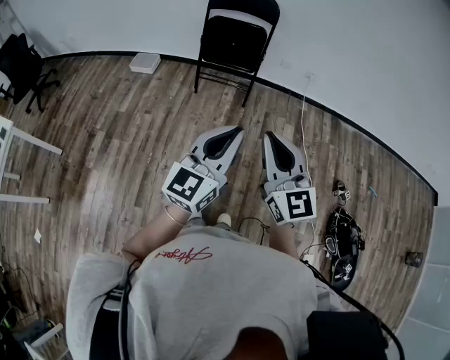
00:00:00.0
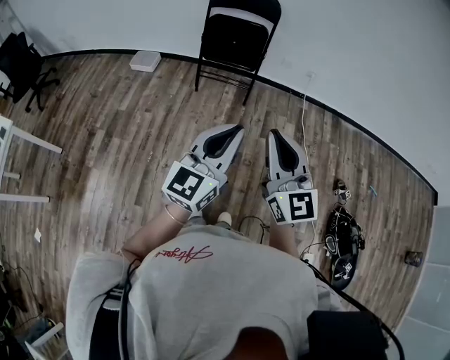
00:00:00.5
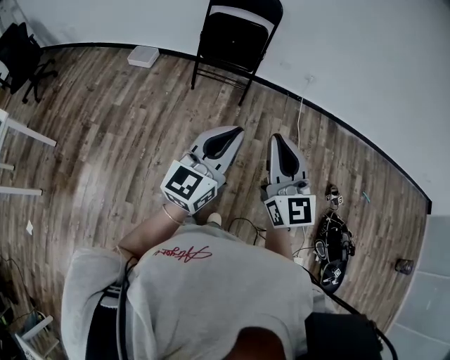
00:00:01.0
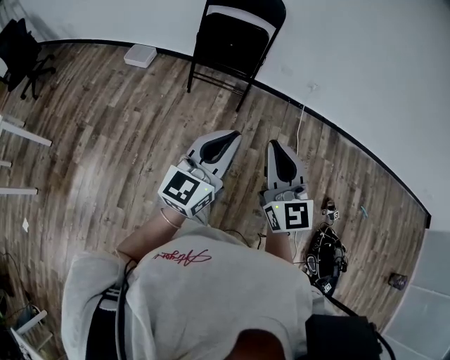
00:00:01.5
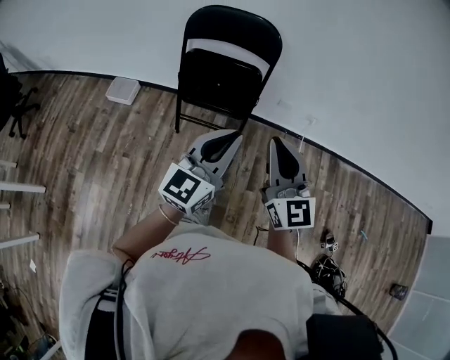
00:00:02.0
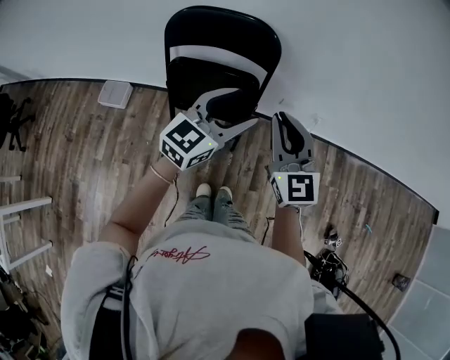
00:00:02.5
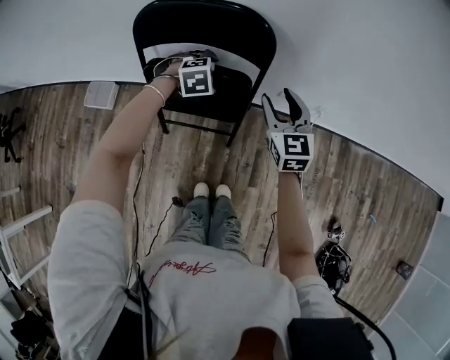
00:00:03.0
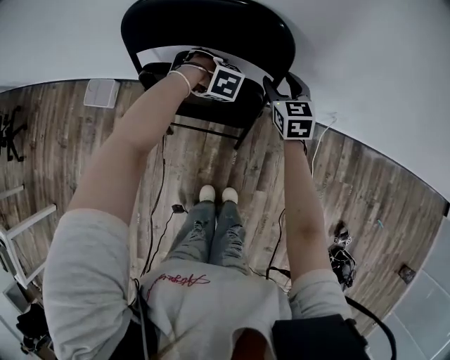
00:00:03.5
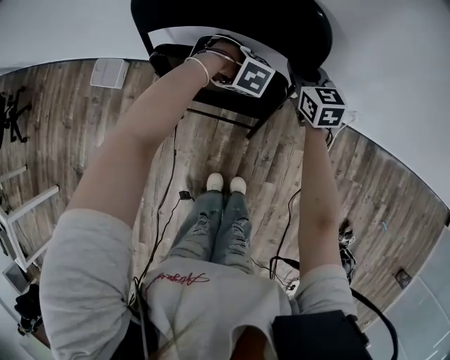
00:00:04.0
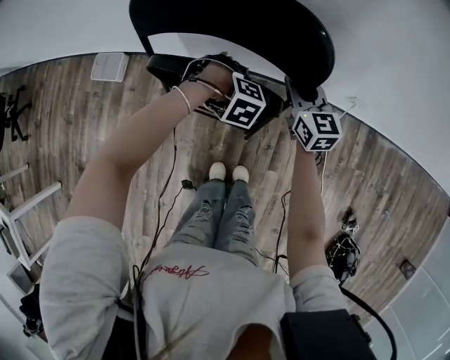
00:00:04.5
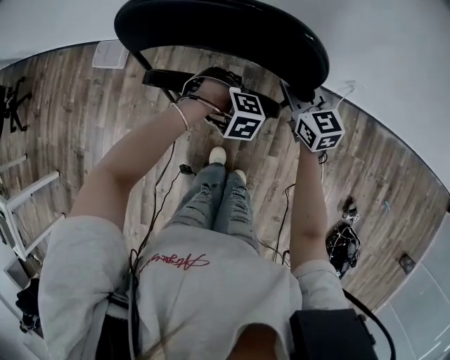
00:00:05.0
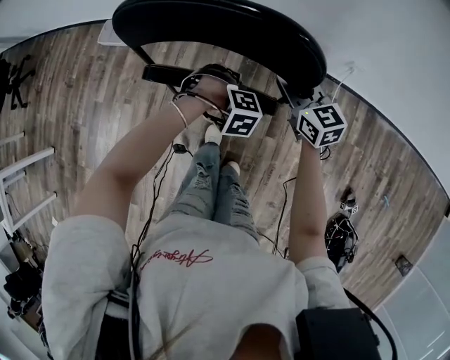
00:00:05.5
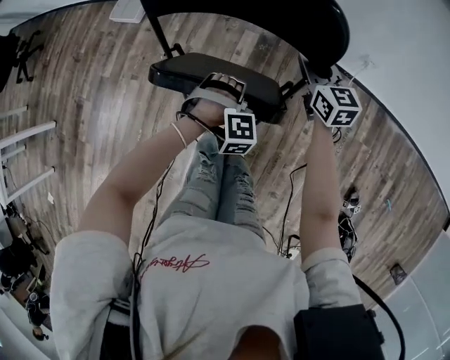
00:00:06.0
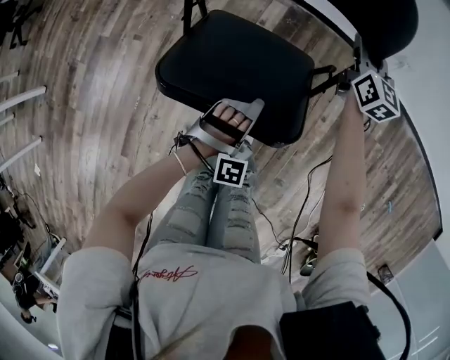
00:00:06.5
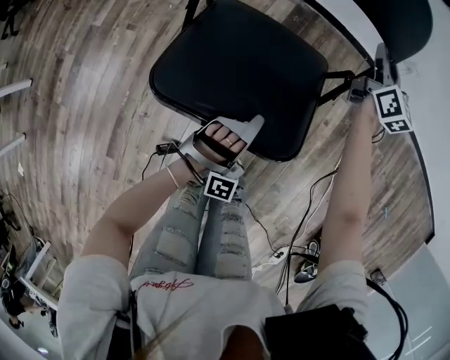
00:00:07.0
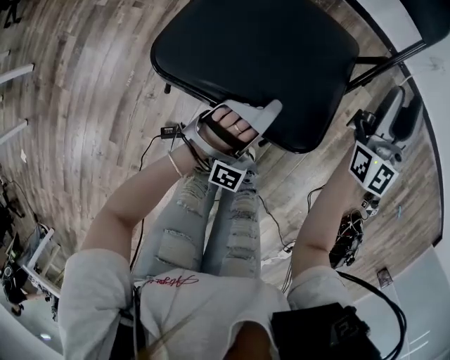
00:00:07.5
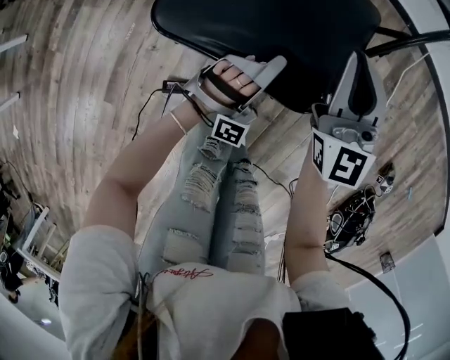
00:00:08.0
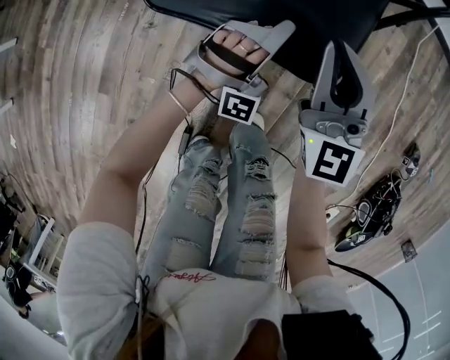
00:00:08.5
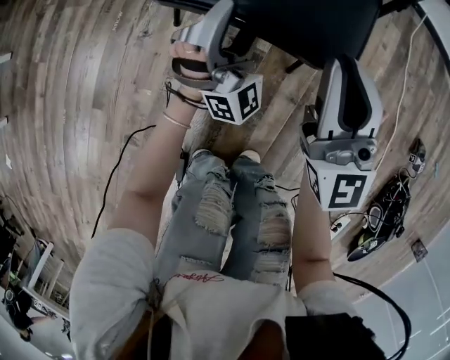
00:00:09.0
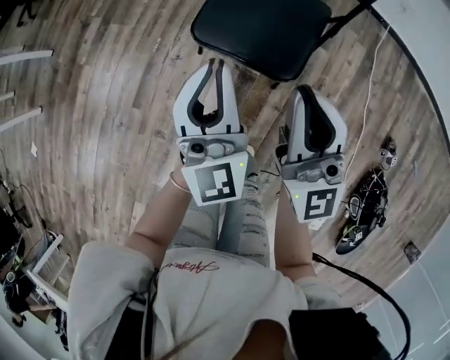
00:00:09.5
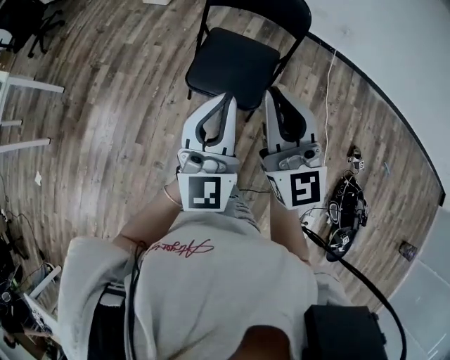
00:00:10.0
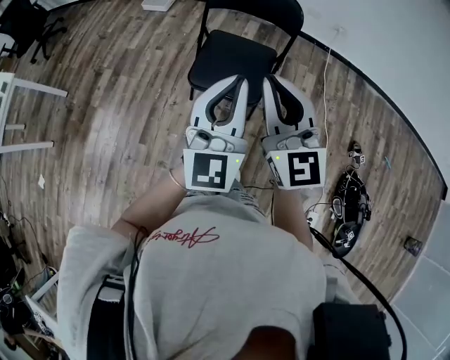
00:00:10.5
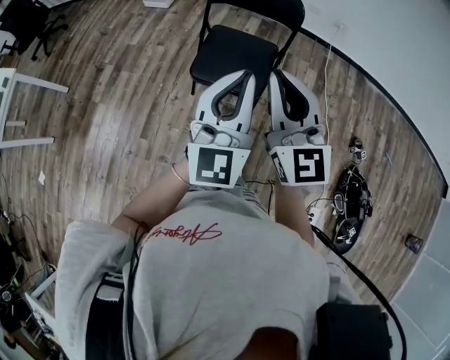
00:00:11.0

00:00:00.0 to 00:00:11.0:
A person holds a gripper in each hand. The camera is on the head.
00:00:00.0 to 00:00:02.0: The pair of grippers is taken forward, approximately 40 cm.
00:00:02.0 to 00:00:03.5: Both grippers are carried roughly 50 cm. The left gripper tilts its fingers approximately 100 degrees downward, and opens its fingers; the right gripper points its fingers roughly 30 degrees further downward, and opens its fingers.
00:00:03.5 to 00:00:05.5: The right gripper ends up about 30 cm from where it was, rotates about 20 degrees, and closes its fingers. Meanwhile the left gripper ends up roughly 30 cm from where it was, and closes up.
00:00:05.5 to 00:00:07.5: The right gripper shifts by roughly 20 cm, tips its fingers upward by about 40 degrees, and opens up, while the left gripper ends up roughly 30 cm from where it was, and points its fingers about 60 degrees further upward.
00:00:07.5 to 00:00:09.0: The left gripper moves backward, to the left and downward, about 20 cm, turns by approximately 40 degrees, and opens up; the right gripper shifts roughly 40 cm backward and to the left, and closes.
00:00:09.0 to 00:00:11.0: Both grippers move upward, approximately 50 cm. The left gripper rolls counterclockwise, seen from behind, by roughly 60 degrees, and closes its fingers.

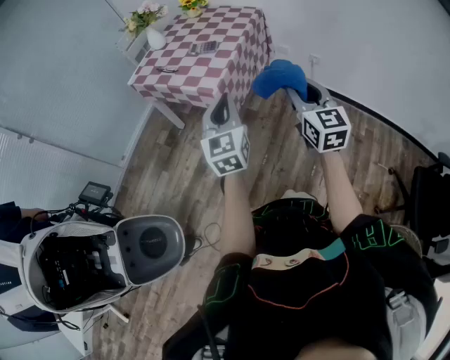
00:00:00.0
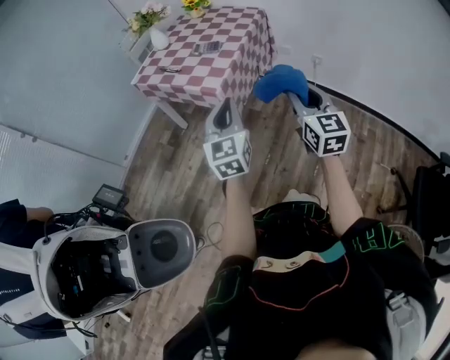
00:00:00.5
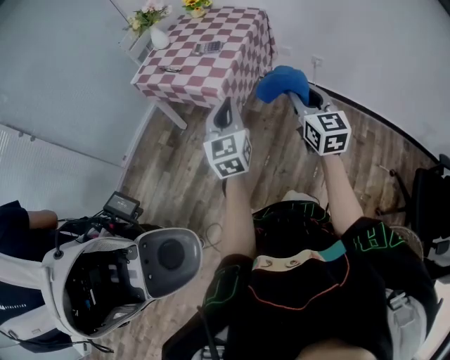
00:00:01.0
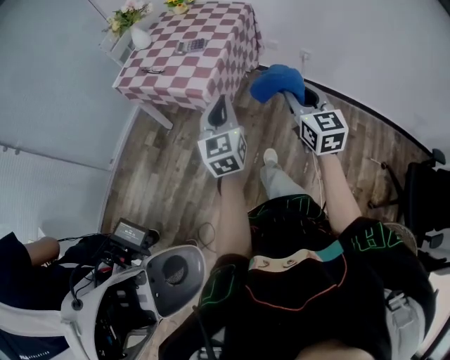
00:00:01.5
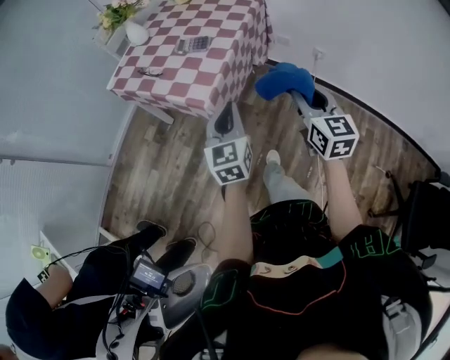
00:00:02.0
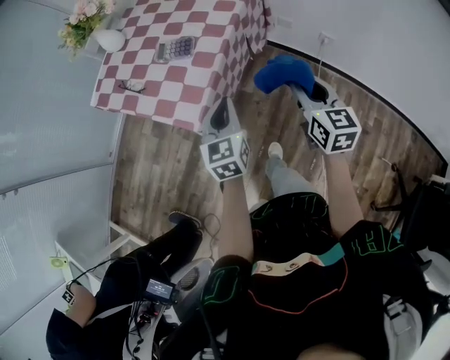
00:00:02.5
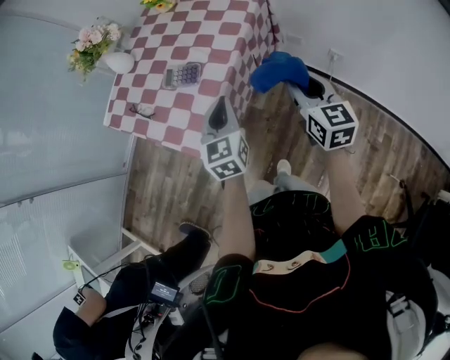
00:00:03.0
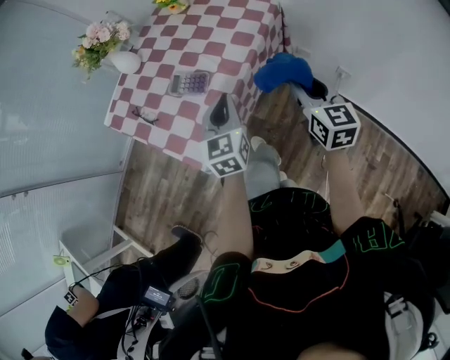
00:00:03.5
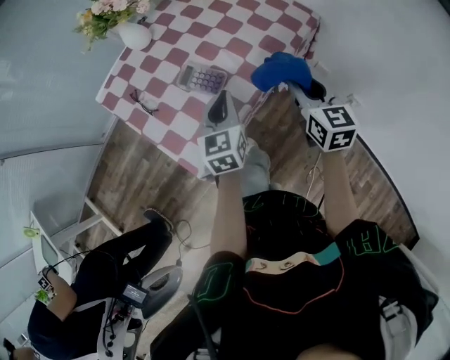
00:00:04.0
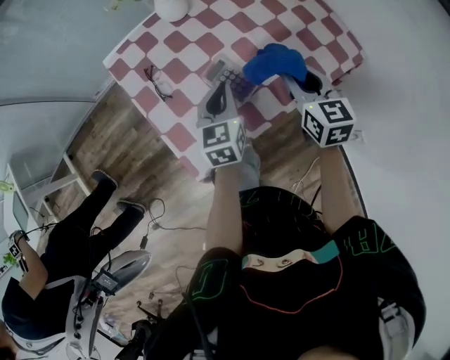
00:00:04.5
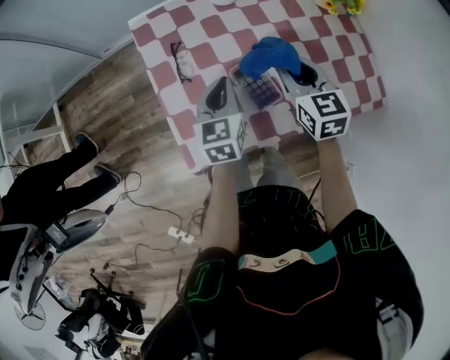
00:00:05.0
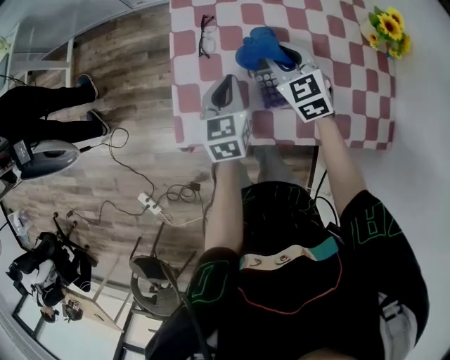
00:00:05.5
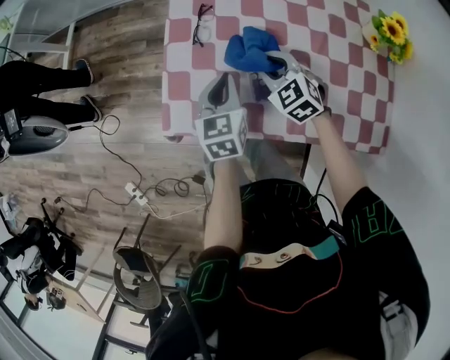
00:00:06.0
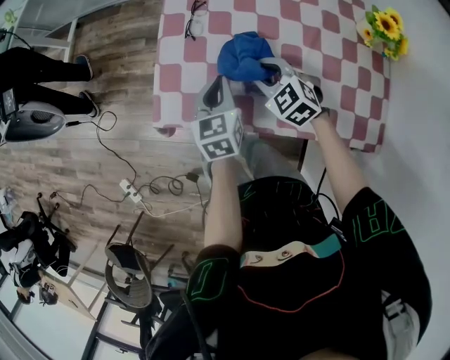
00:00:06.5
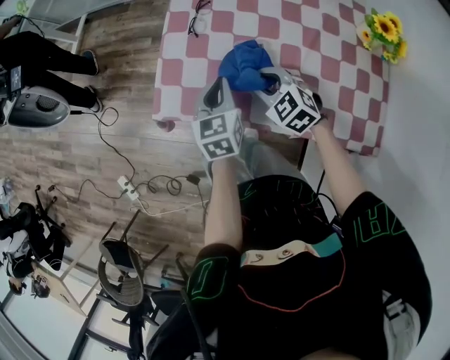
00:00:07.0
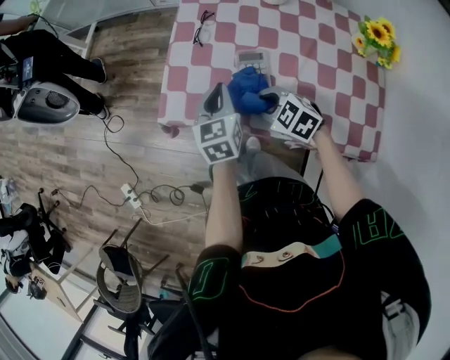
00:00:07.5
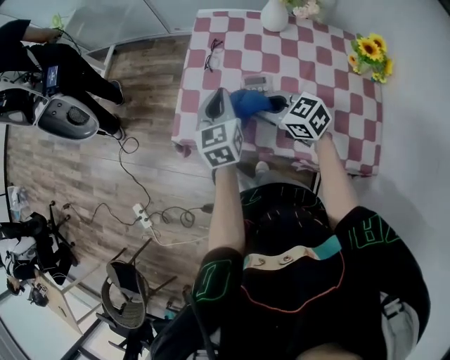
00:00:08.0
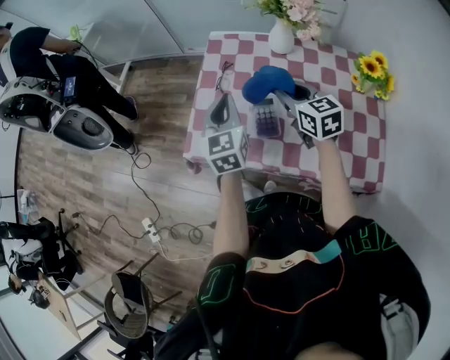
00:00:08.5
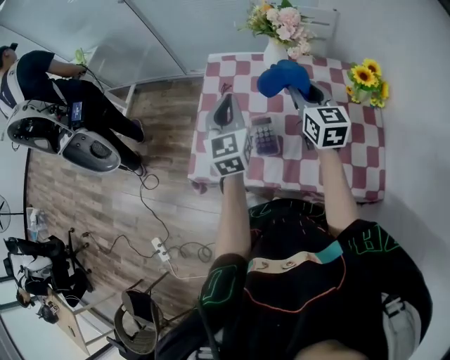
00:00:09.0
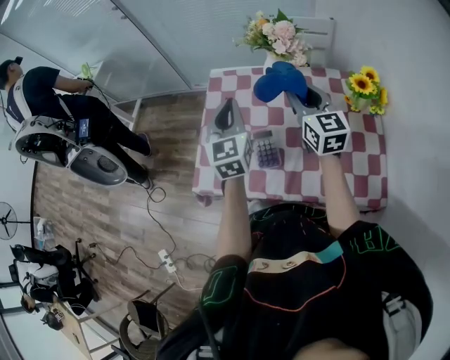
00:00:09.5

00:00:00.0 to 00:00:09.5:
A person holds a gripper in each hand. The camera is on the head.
00:00:00.0 to 00:00:02.0: The two grippers go approximately 15 cm forward and downward.
00:00:02.0 to 00:00:04.0: Both grippers travel together forward, approximately 35 cm.
00:00:04.0 to 00:00:05.5: The left gripper changes place by some 20 cm, and changes its angle by roughly 50 degrees, while the right gripper ends up about 35 cm from where it was, and turns by about 70 degrees.
00:00:05.5 to 00:00:07.5: The left gripper ends up roughly 10 cm from where it was. Meanwhile the right gripper shifts by about 20 cm, and rotates roughly 40 degrees.
00:00:07.5 to 00:00:09.5: The grippers both shift upward by about 20 cm. The right gripper angles its fingers upward, by roughly 50 degrees. The left gripper changes its angle by approximately 30 degrees.

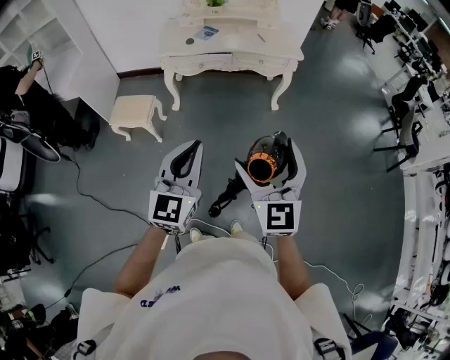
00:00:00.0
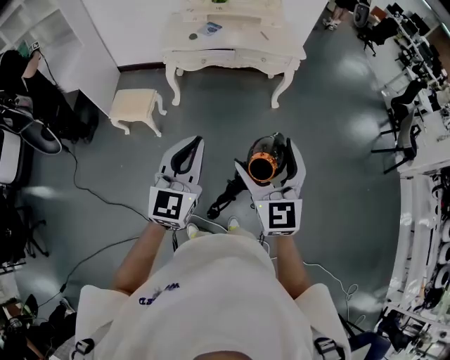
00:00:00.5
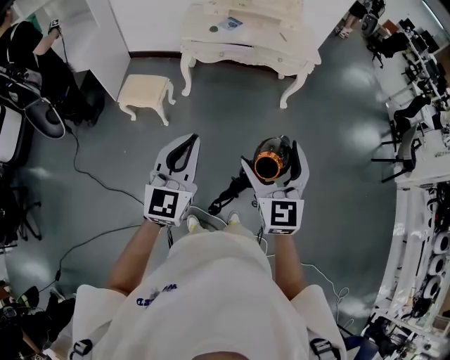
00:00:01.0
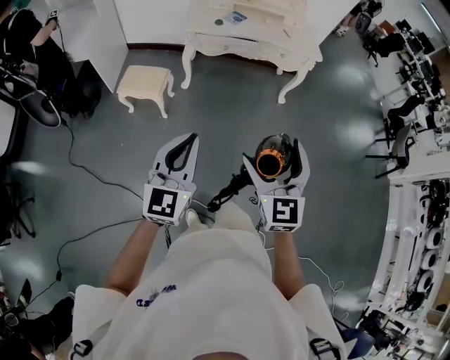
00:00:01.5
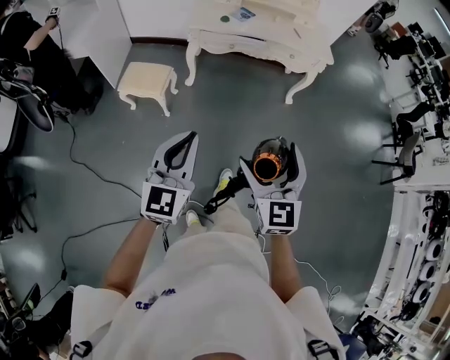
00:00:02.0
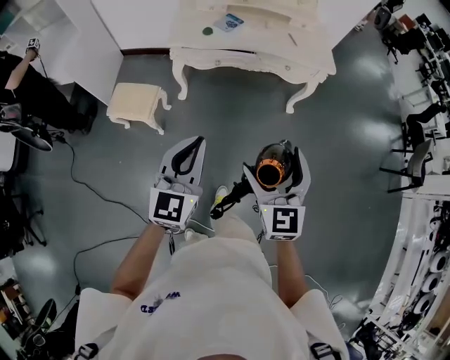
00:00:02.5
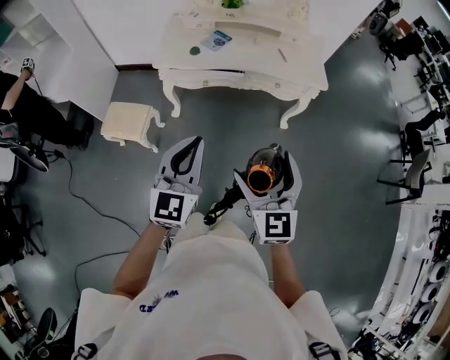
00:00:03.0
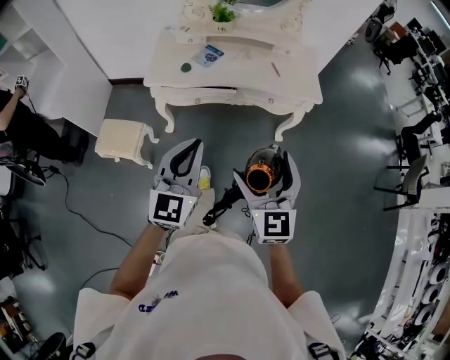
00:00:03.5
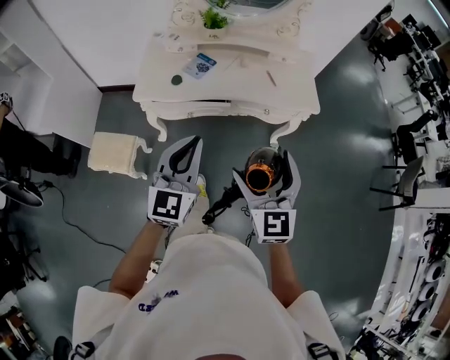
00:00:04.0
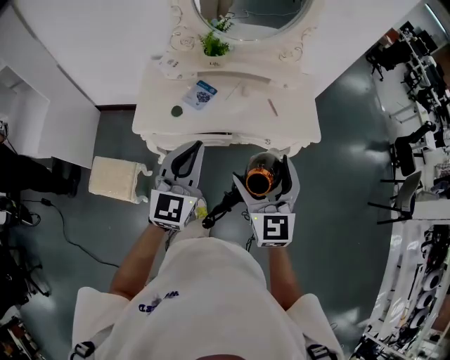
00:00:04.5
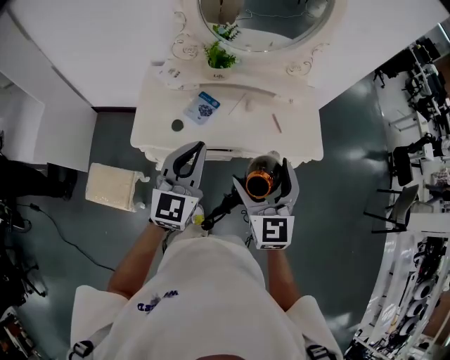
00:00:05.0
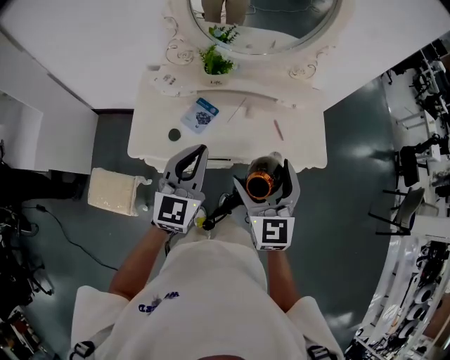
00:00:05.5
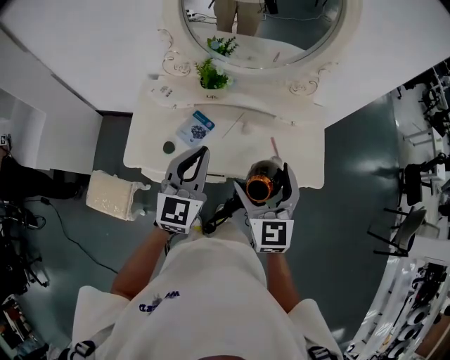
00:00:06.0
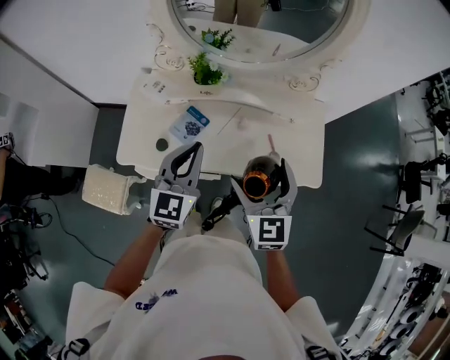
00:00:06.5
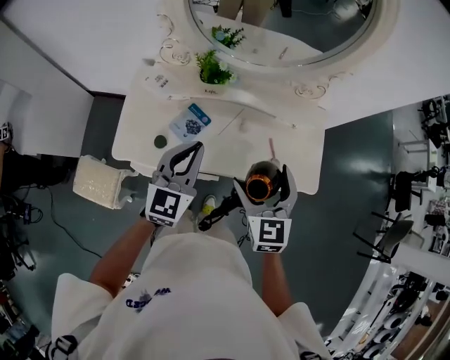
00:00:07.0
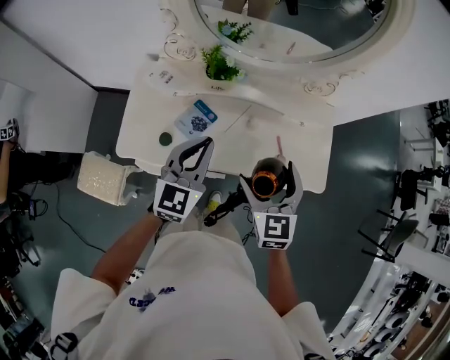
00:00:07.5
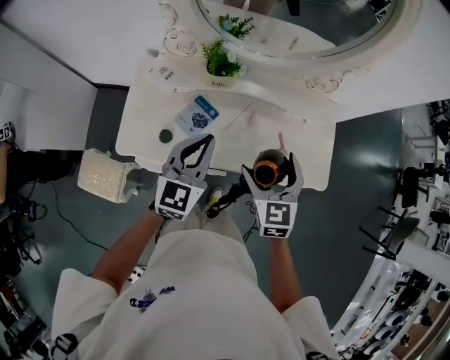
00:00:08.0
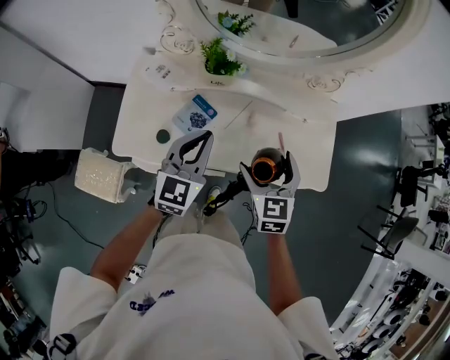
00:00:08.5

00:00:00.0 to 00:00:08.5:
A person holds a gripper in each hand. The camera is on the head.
00:00:00.0 to 00:00:02.0: The right gripper travels to the left and downward by approximately 15 cm, while the left gripper shifts roughly 15 cm to the left.
00:00:02.0 to 00:00:04.0: The two grippers travel together, forward, roughly 50 cm.
00:00:04.0 to 00:00:06.5: Both grippers travel together forward, approximately 35 cm.
00:00:06.5 to 00:00:08.5: The right gripper goes about 15 cm downward and forward. The left gripper travels downward by some 5 cm.
